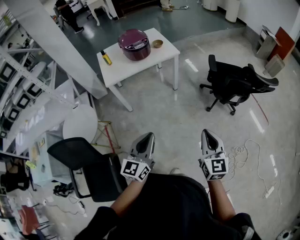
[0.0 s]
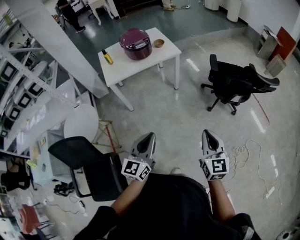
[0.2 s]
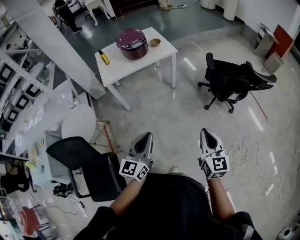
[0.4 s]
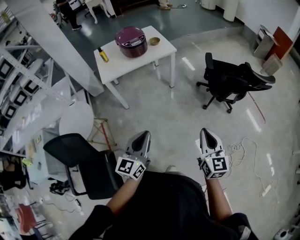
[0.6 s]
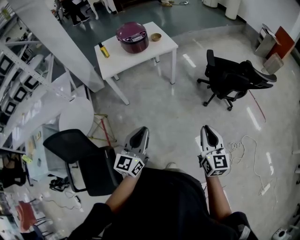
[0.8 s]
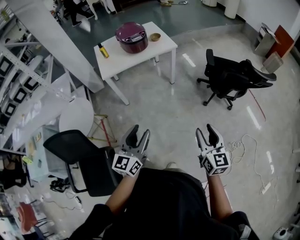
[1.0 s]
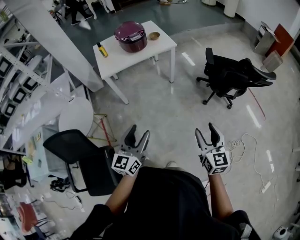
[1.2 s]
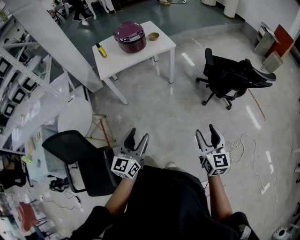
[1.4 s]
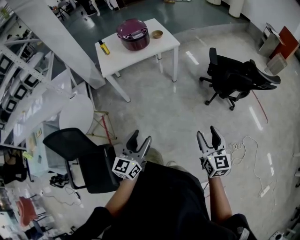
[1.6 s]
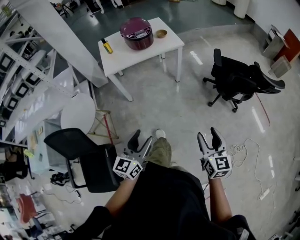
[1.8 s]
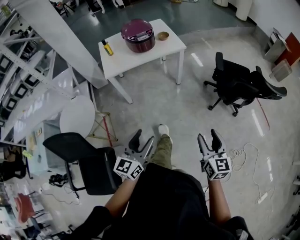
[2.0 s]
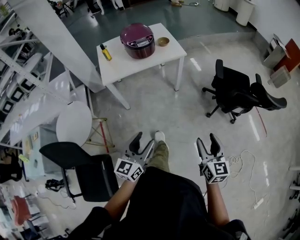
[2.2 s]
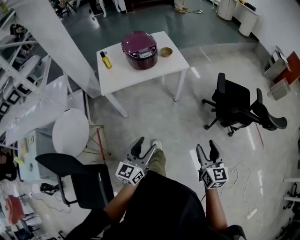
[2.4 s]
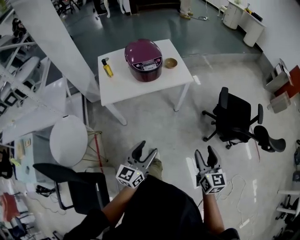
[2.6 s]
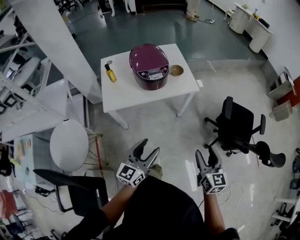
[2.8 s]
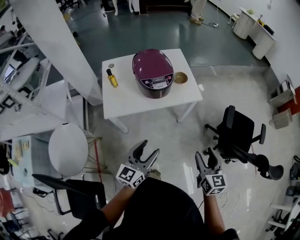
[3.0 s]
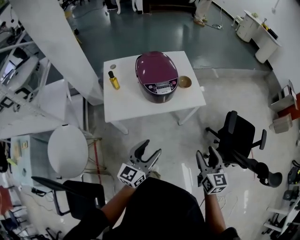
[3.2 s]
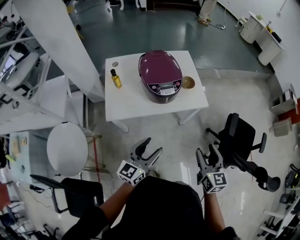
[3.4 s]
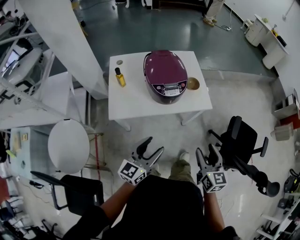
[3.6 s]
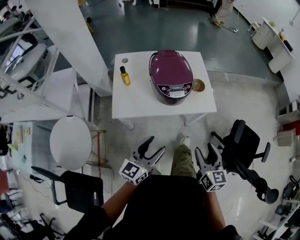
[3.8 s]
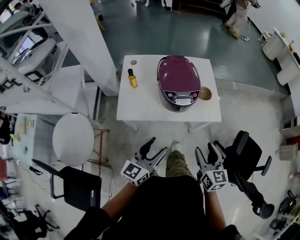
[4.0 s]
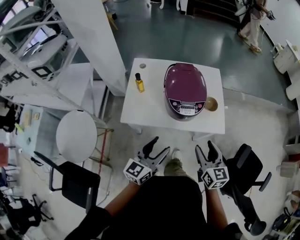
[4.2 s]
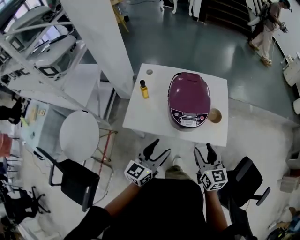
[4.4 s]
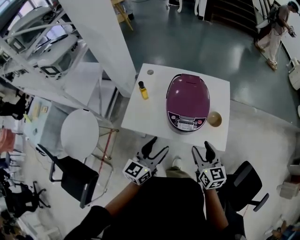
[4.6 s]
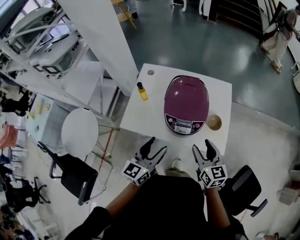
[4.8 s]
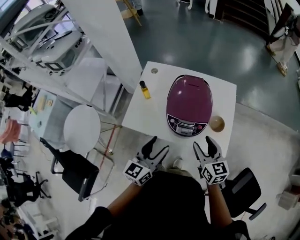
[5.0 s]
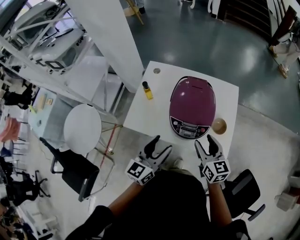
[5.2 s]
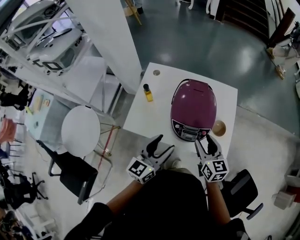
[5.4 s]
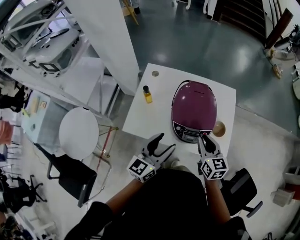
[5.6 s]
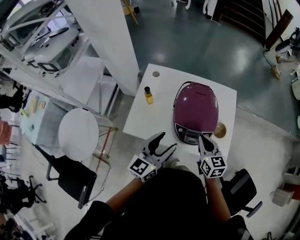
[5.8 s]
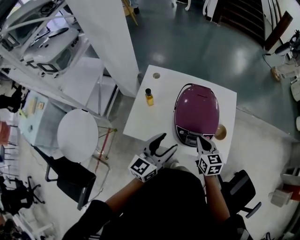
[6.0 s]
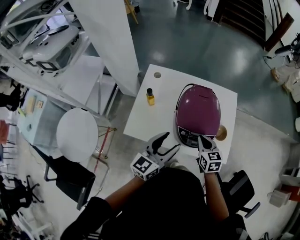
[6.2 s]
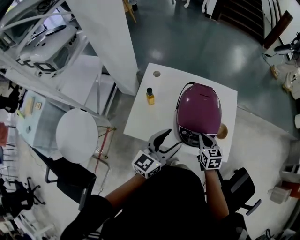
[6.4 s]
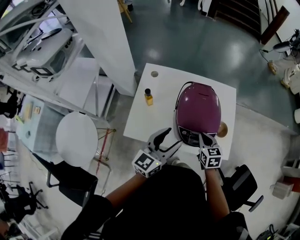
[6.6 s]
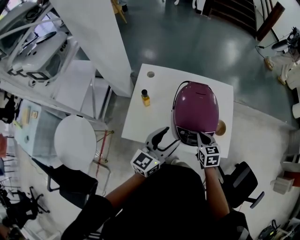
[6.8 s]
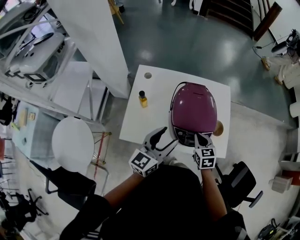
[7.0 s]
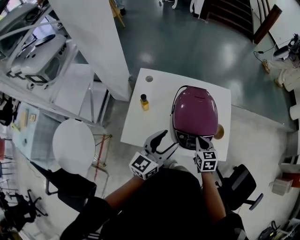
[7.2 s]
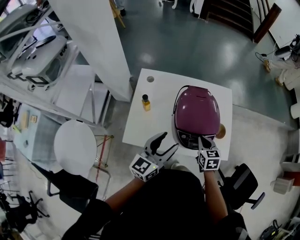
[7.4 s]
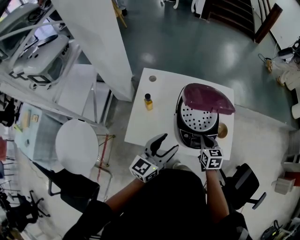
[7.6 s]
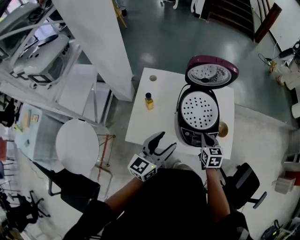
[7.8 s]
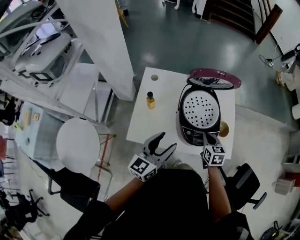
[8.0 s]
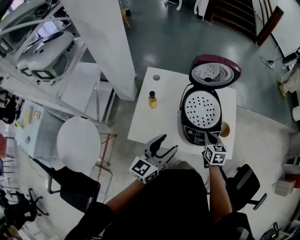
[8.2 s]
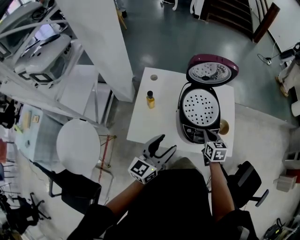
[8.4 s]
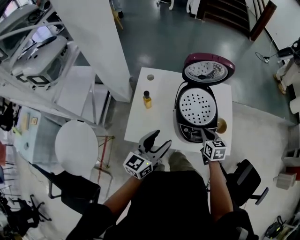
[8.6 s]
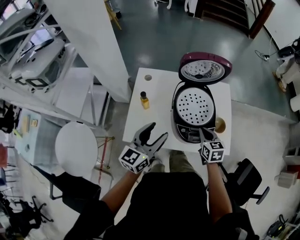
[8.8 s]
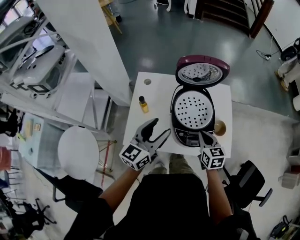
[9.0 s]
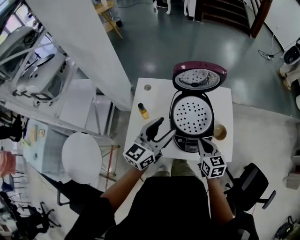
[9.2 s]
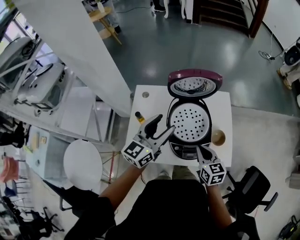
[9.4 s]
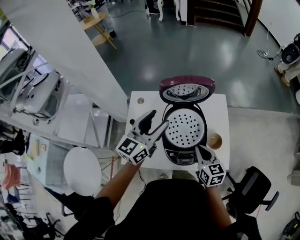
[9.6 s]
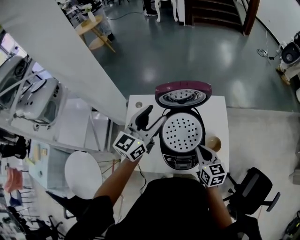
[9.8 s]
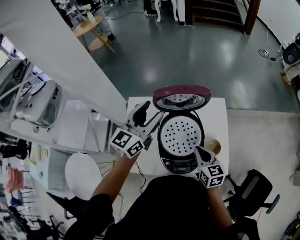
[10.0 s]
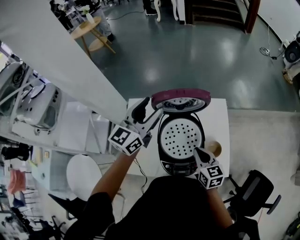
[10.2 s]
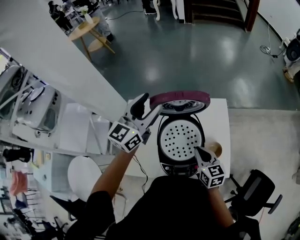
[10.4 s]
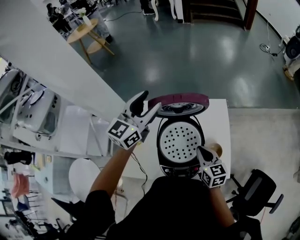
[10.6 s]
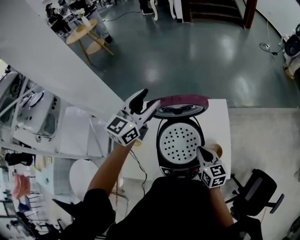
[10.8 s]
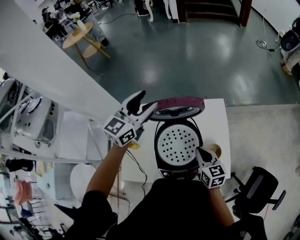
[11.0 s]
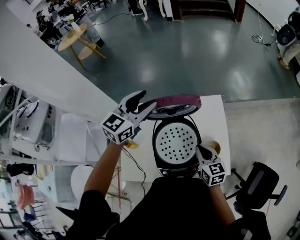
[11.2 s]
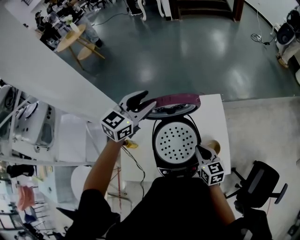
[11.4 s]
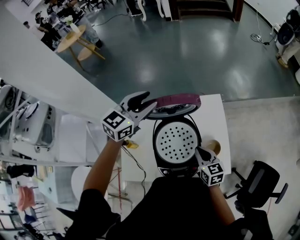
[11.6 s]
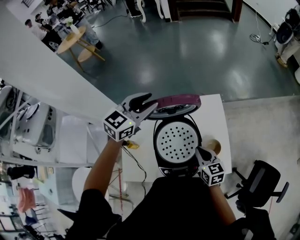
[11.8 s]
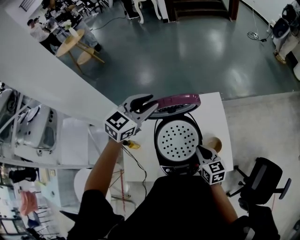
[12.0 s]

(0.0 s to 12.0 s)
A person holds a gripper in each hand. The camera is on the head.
0.0 s - 1.6 s: The left gripper ends up some 5 cm from where it was, and opens, while the right gripper shifts by approximately 5 cm, and opens its fingers.
1.6 s - 3.0 s: Both grippers are carried forward, some 40 cm.
3.0 s - 4.4 s: The right gripper travels forward and to the left by approximately 30 cm, and turns by roughly 30 degrees. Meanwhile the left gripper goes some 20 cm forward.
4.4 s - 6.0 s: The right gripper moves forward and downward, about 15 cm, and closes; the left gripper shifts about 10 cm forward.
6.0 s - 7.6 s: The right gripper ends up some 5 cm from where it was.
7.6 s - 9.0 s: The left gripper is displaced forward by some 5 cm.
9.0 s - 10.4 s: The left gripper heads forward and upward, covering some 30 cm, while the right gripper shifts about 10 cm forward.
10.4 s - 12.0 s: The left gripper moves about 5 cm, turns by approximately 30 degrees, and closes up.

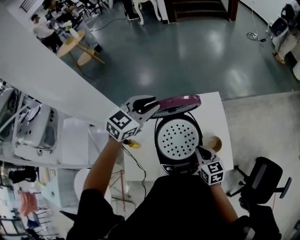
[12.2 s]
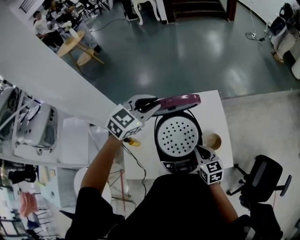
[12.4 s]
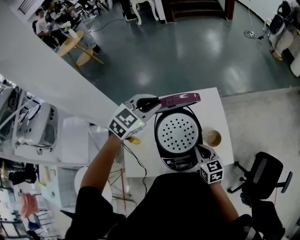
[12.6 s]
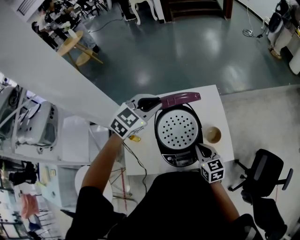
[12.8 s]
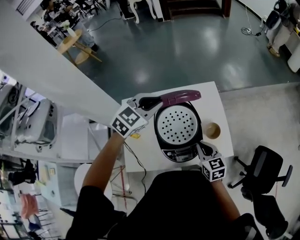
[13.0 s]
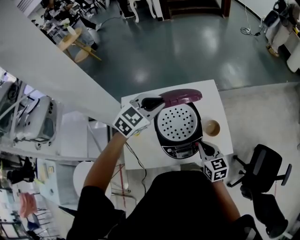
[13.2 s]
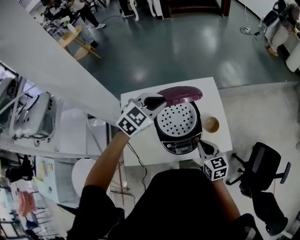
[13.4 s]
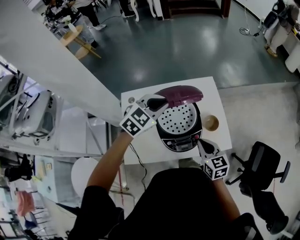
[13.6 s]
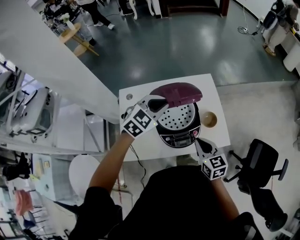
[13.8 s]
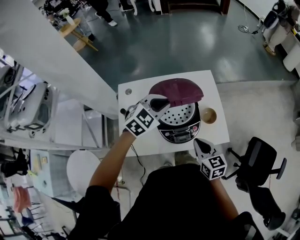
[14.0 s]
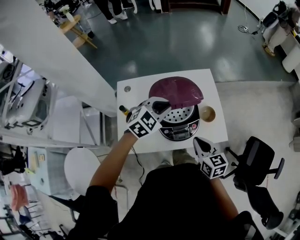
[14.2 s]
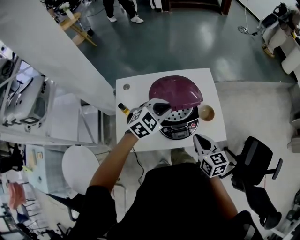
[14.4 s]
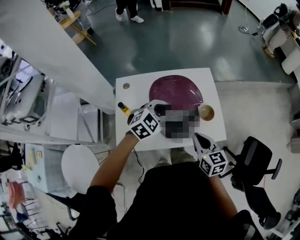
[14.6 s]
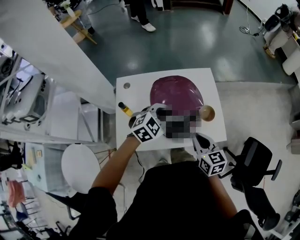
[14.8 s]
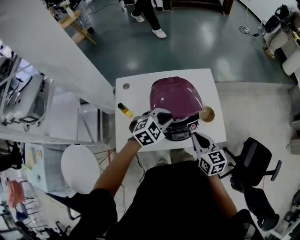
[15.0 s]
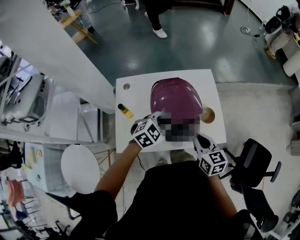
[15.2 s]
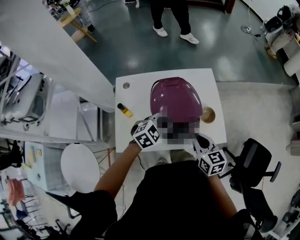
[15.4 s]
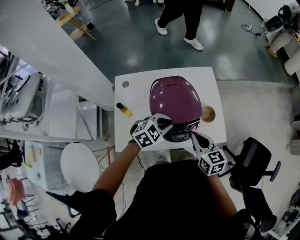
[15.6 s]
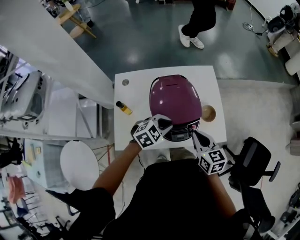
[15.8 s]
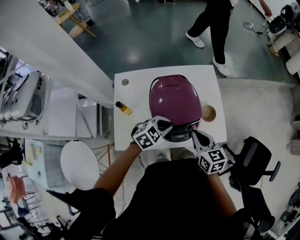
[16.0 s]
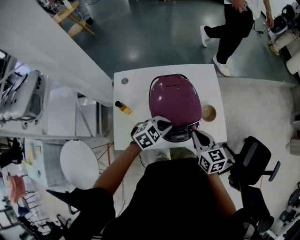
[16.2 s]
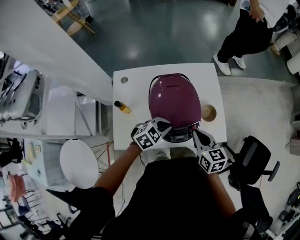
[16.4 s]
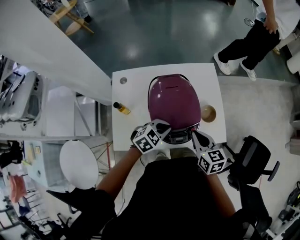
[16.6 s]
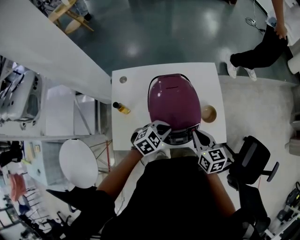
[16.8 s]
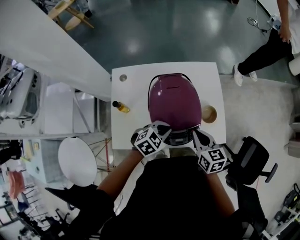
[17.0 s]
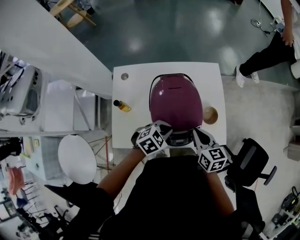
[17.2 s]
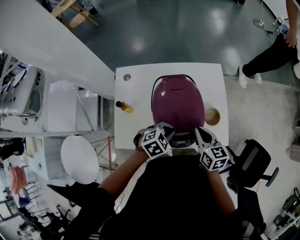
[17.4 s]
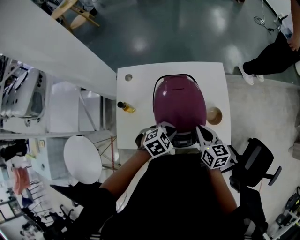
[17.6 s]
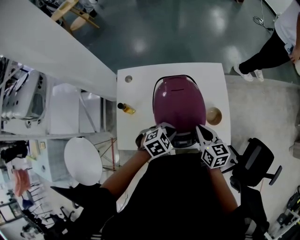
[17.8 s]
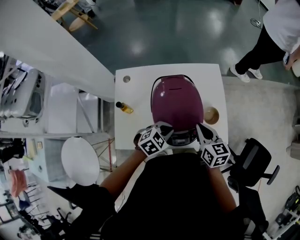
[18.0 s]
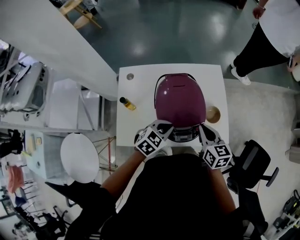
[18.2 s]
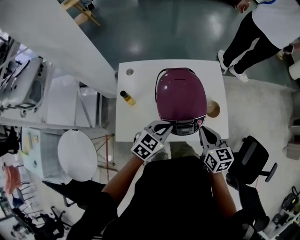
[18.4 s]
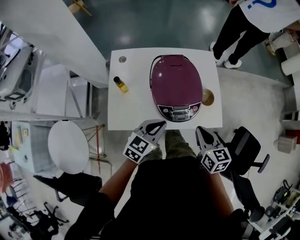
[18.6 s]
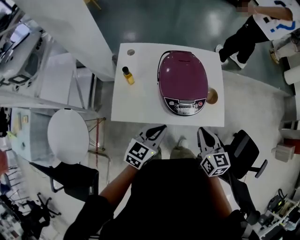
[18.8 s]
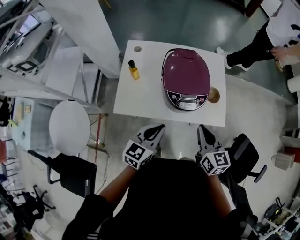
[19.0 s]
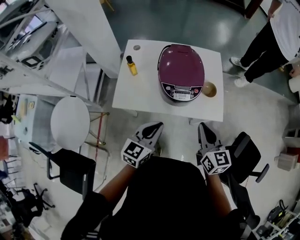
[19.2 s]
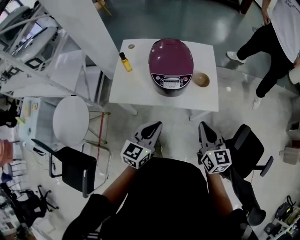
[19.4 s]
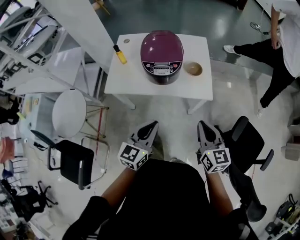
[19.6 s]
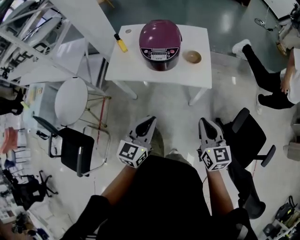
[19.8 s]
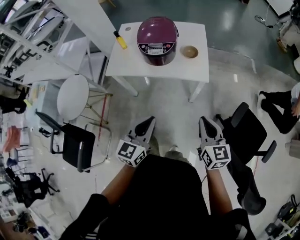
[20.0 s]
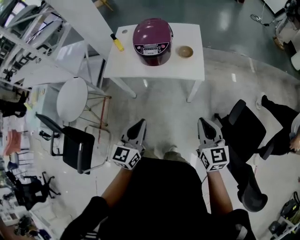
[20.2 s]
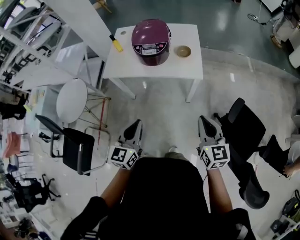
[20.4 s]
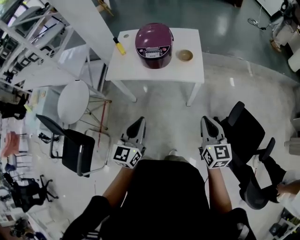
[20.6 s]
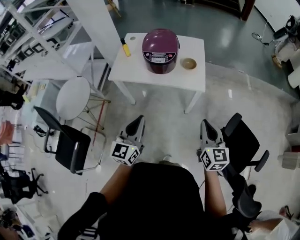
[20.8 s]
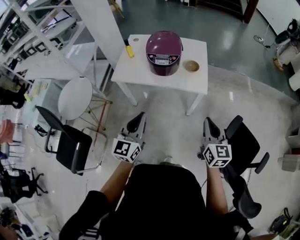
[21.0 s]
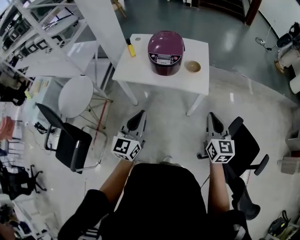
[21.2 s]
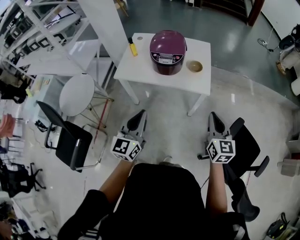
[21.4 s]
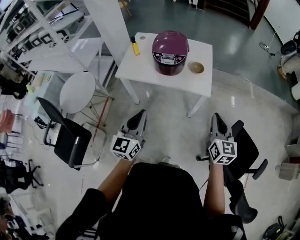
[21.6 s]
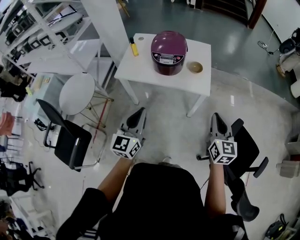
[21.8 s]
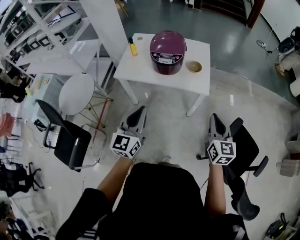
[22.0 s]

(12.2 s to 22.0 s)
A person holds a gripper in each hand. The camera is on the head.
12.2 s - 13.6 s: The left gripper shifts approximately 15 cm backward and to the right. Meanwhile the right gripper moves backward, roughly 10 cm.
13.6 s - 15.0 s: The left gripper shifts approximately 15 cm downward and backward.
15.0 s - 16.4 s: The left gripper goes roughly 10 cm downward.
16.4 s - 17.8 s: The right gripper moves some 5 cm.
17.8 s - 19.2 s: Both grippers move backward and upward, about 25 cm. The left gripper angles its fingers upward, by about 40 degrees.
19.2 s - 20.6 s: Both grippers move backward and to the right, approximately 30 cm. The left gripper turns by about 20 degrees.
20.6 s - 22.0 s: The left gripper shifts by approximately 5 cm.

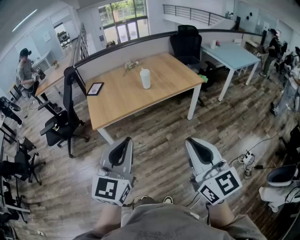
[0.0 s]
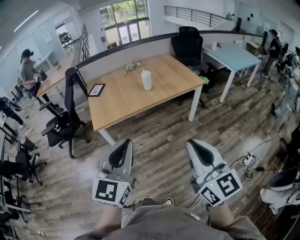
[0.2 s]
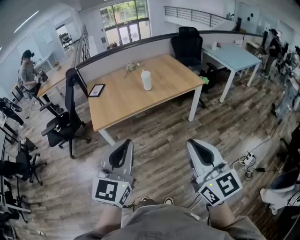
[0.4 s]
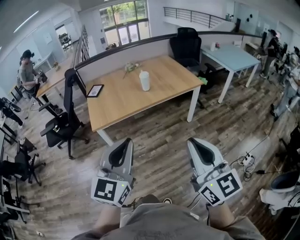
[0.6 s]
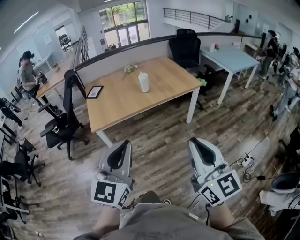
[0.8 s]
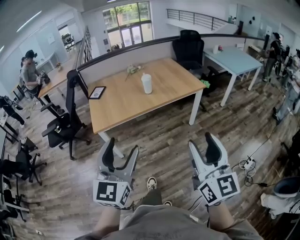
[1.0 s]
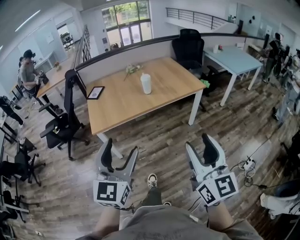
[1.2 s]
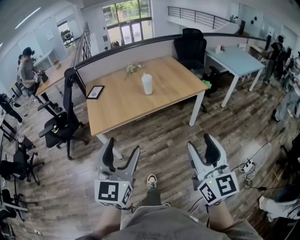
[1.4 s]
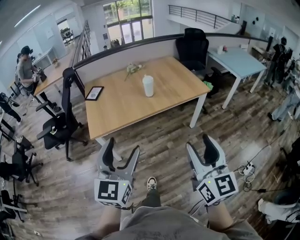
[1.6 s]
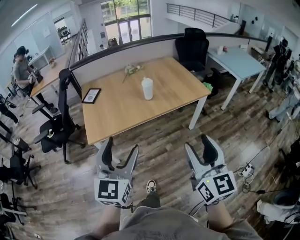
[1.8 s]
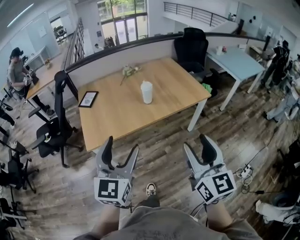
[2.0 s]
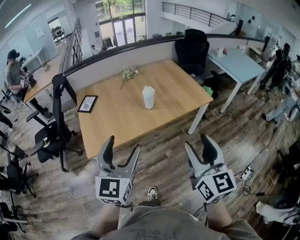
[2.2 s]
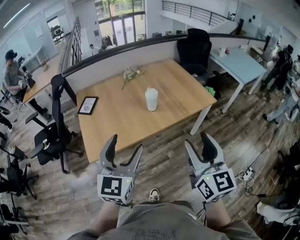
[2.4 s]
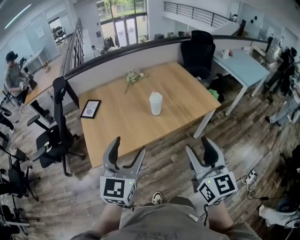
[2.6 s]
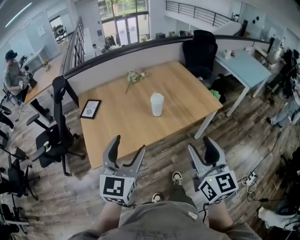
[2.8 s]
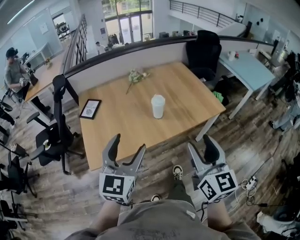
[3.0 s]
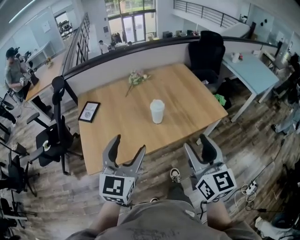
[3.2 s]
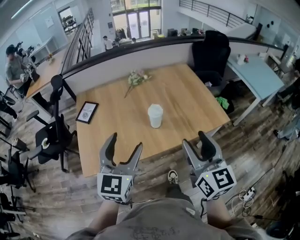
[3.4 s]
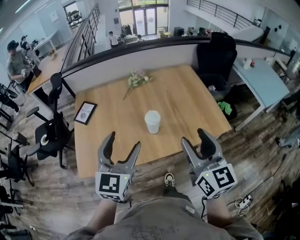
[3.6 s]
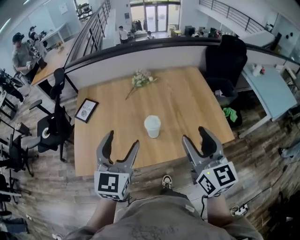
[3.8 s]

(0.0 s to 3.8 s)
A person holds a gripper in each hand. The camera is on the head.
0.0 s - 1.2 s: The right gripper moves some 5 cm, and opens up. The left gripper opens its fingers.
1.2 s - 2.6 s: Both grippers move forward, roughly 35 cm.
2.6 s - 3.8 s: The two grippers go some 30 cm forward.
